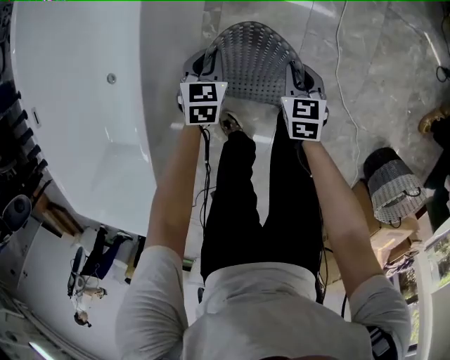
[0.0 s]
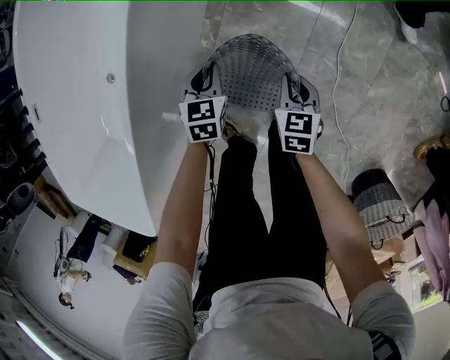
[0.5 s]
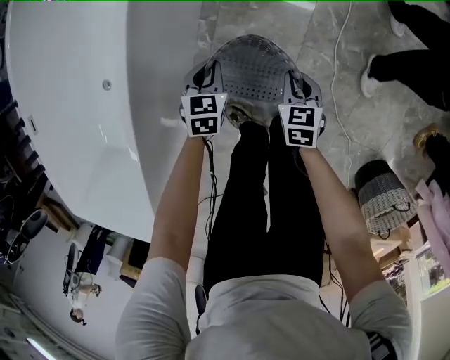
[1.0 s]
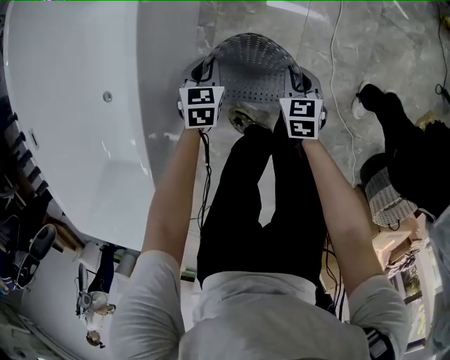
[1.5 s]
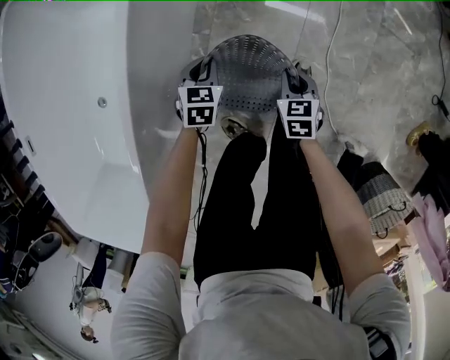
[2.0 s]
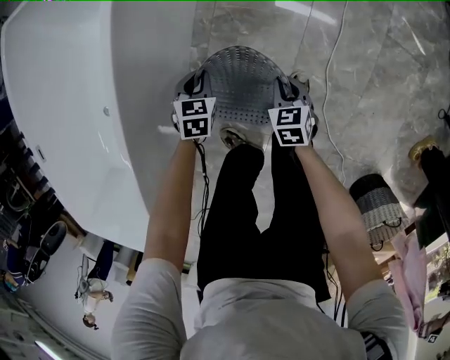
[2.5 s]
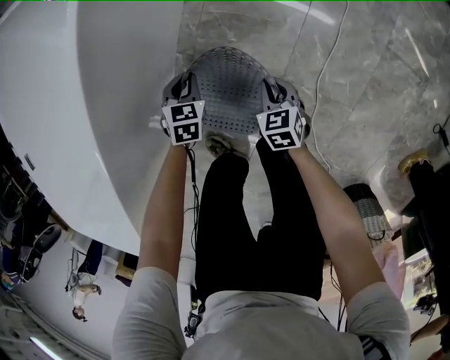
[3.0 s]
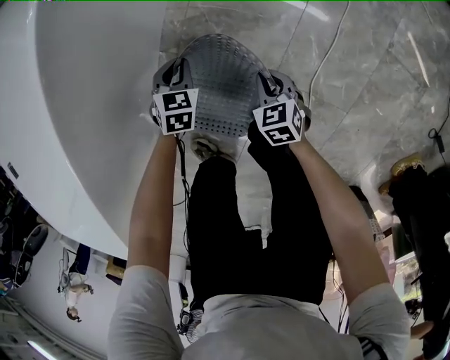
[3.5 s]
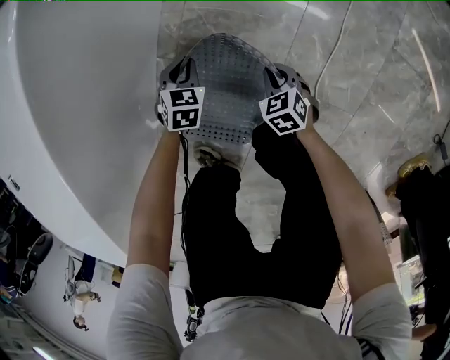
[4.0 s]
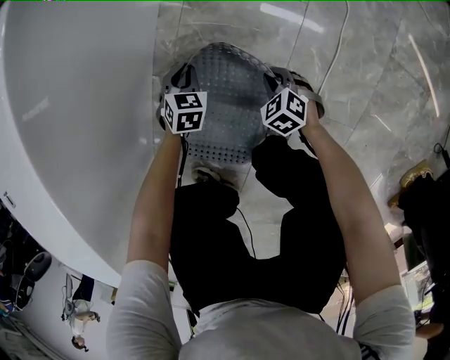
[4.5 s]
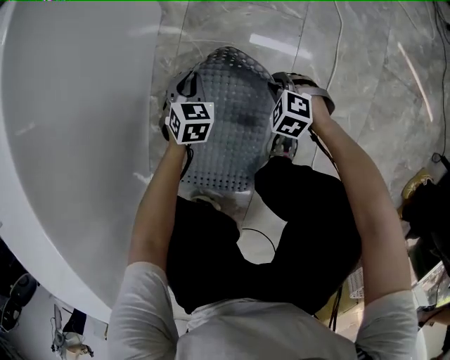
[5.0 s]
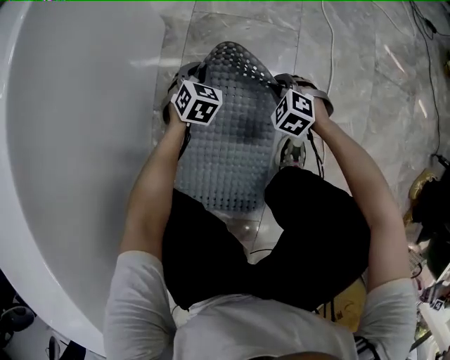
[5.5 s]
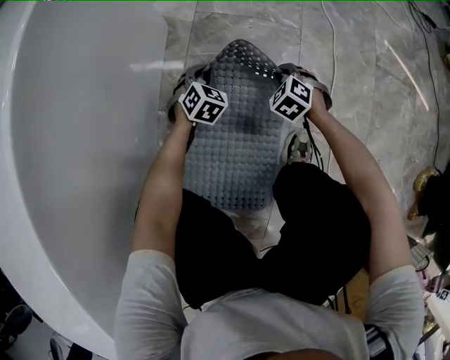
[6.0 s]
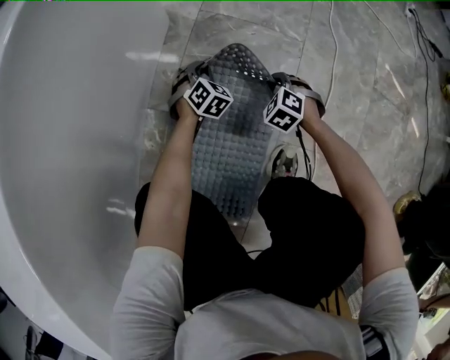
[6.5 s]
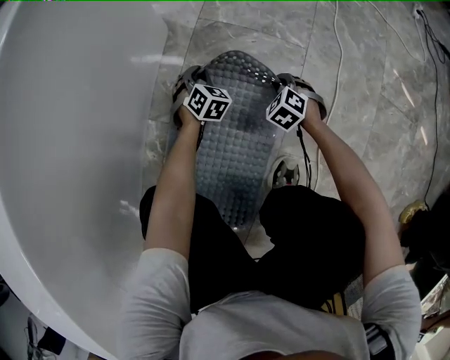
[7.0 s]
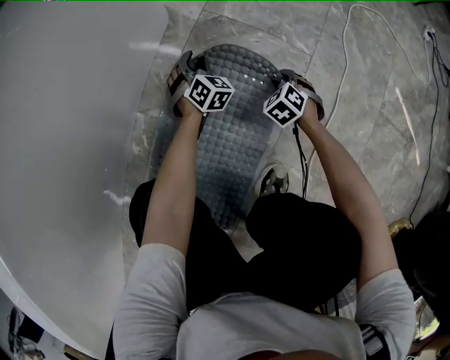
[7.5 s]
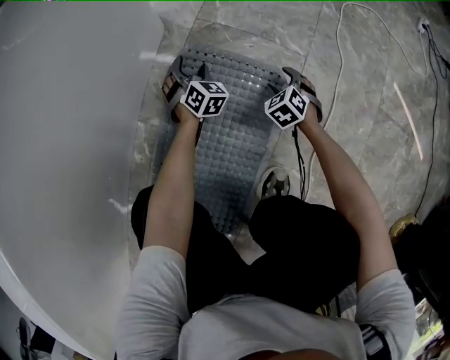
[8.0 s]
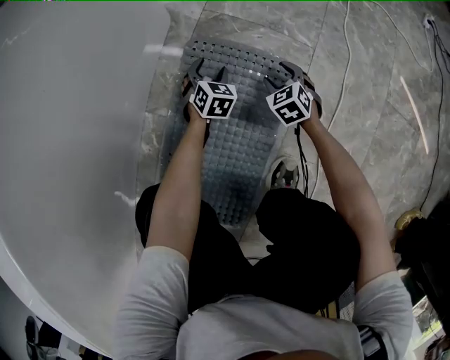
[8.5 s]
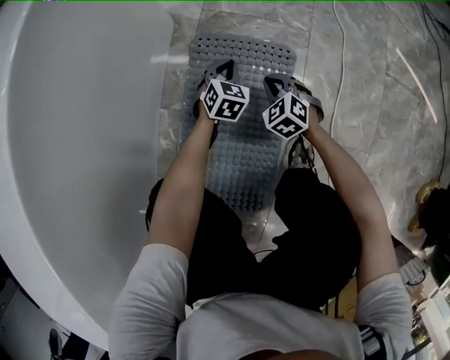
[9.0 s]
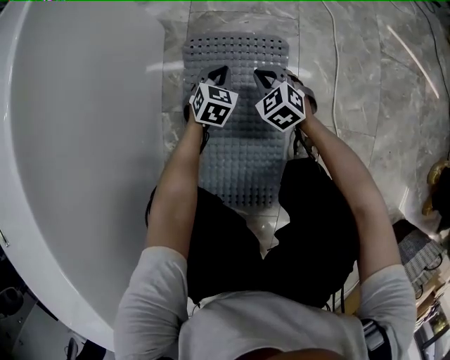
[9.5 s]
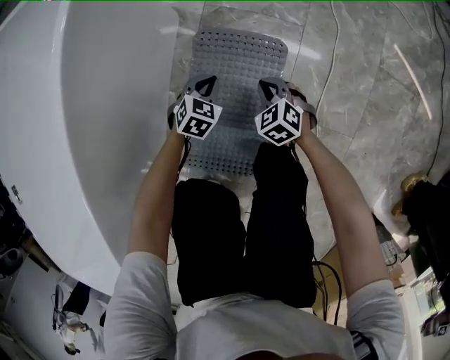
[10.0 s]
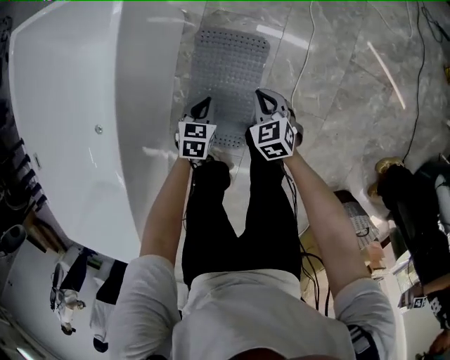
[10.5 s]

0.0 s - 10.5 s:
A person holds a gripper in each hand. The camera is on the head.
0.0 s - 2.0 s: The grippers both shift forward and downward by approximately 10 cm.
2.0 s - 4.0 s: Both grippers move downward, forward and to the right, some 25 cm. The right gripper changes its angle by approximately 30 degrees.
4.0 s - 6.5 s: Both grippers travel together downward, some 15 cm. The right gripper swivels some 40 degrees, while the left gripper changes its angle by about 30 degrees.
6.5 s - 8.5 s: The right gripper moves forward, some 5 cm, turns by some 20 degrees, and opens. The left gripper opens its fingers.
8.5 s - 10.5 s: The left gripper travels upward and backward by some 40 cm, swivels approximately 20 degrees, and closes; the right gripper travels upward by approximately 40 cm, turns by about 20 degrees, and closes.

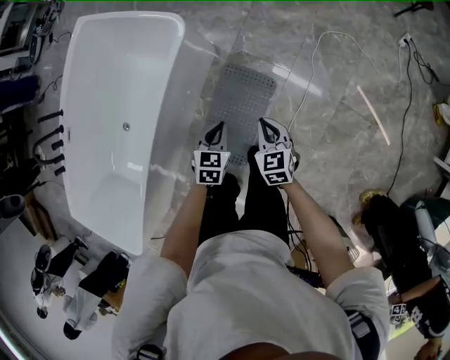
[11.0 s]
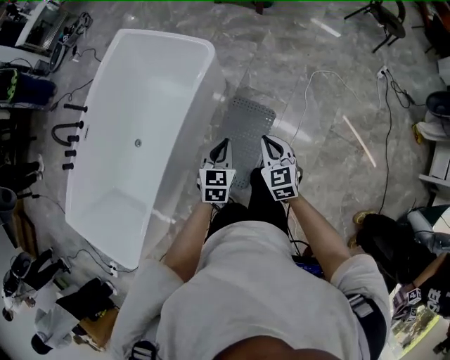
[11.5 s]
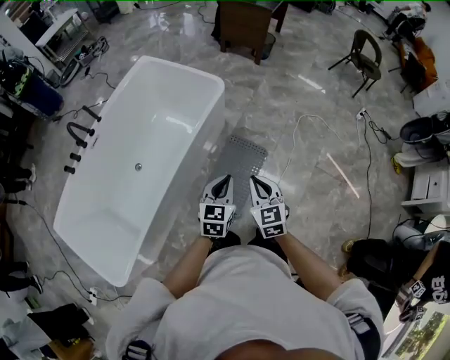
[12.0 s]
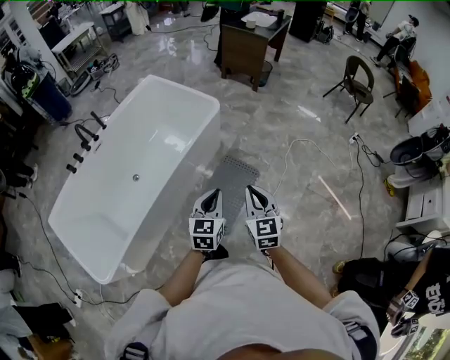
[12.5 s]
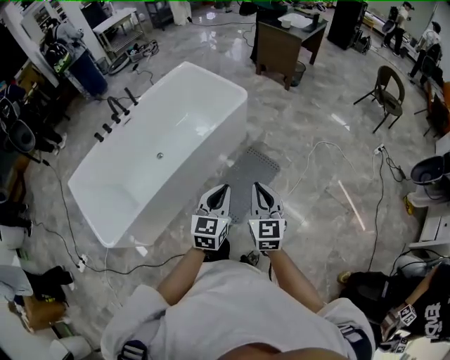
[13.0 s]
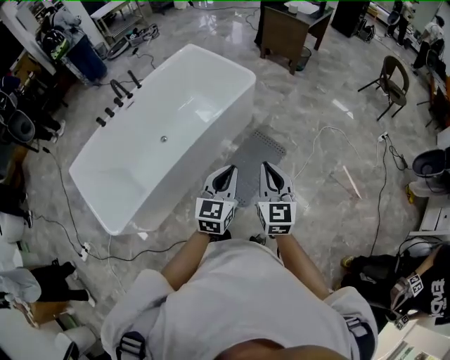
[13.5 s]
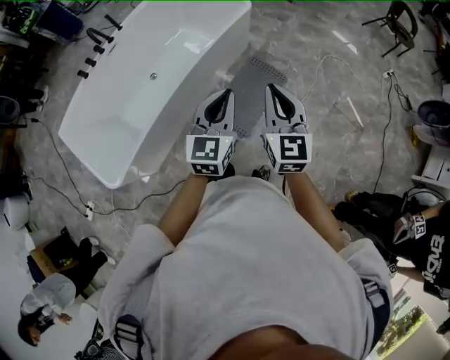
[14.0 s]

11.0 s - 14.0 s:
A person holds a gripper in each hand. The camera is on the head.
11.0 s - 12.5 s: The grippers both shift upward and backward by approximately 40 cm. The left gripper swivels some 30 degrees. Meanwhile the right gripper turns by some 30 degrees.
12.5 s - 14.0 s: The left gripper travels upward, backward and to the left by some 15 cm; the right gripper moves upward, to the left and backward, roughly 10 cm.

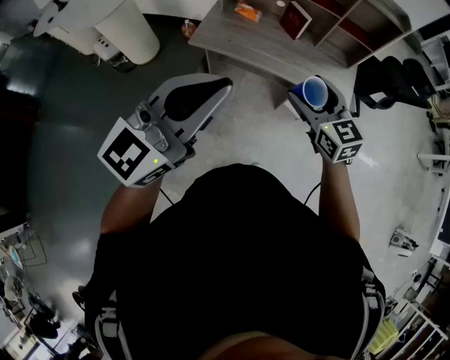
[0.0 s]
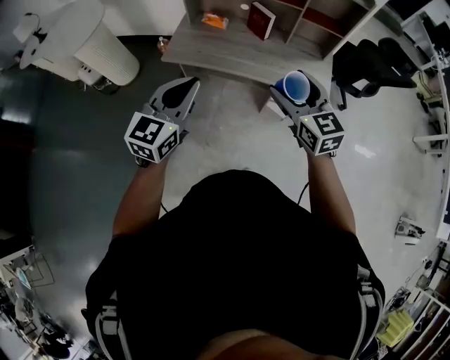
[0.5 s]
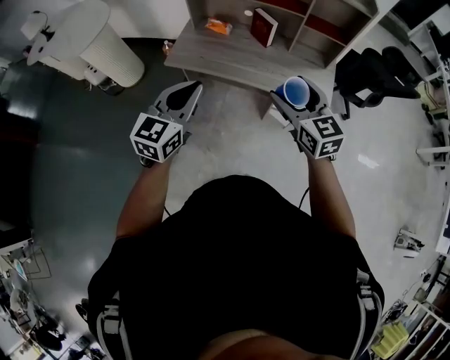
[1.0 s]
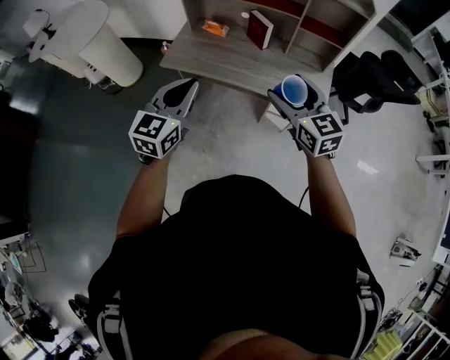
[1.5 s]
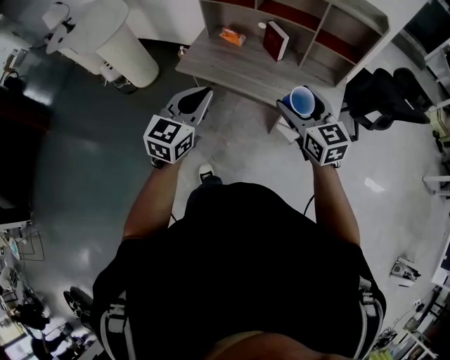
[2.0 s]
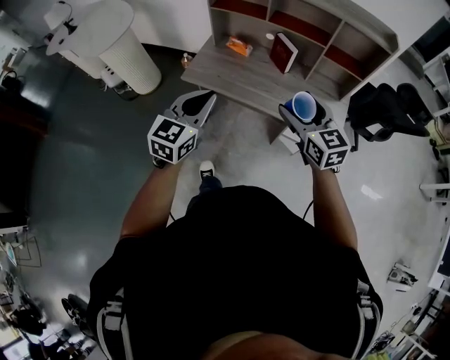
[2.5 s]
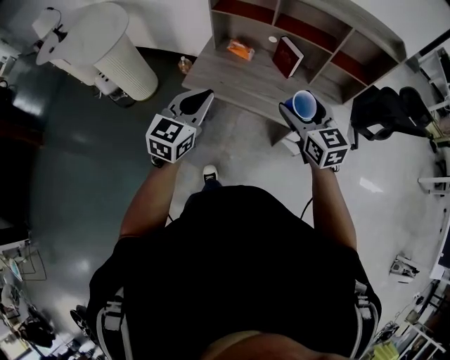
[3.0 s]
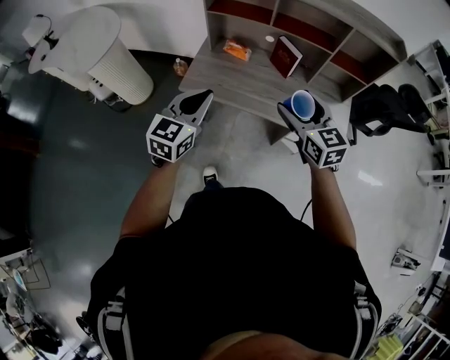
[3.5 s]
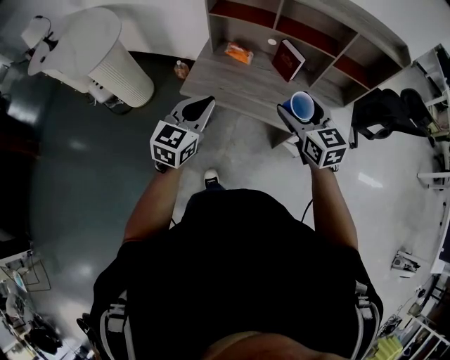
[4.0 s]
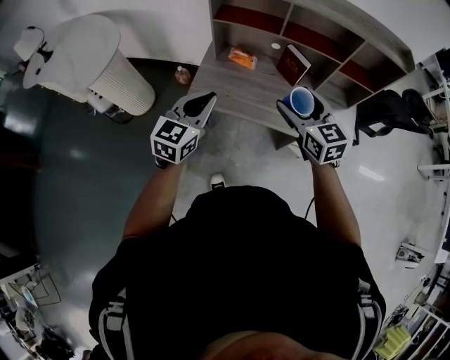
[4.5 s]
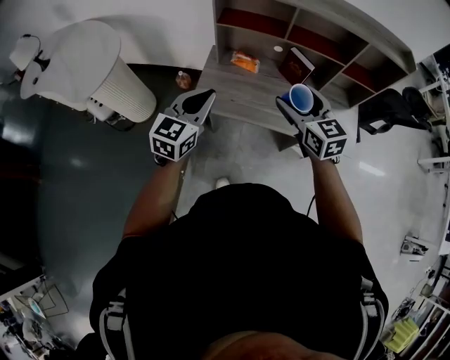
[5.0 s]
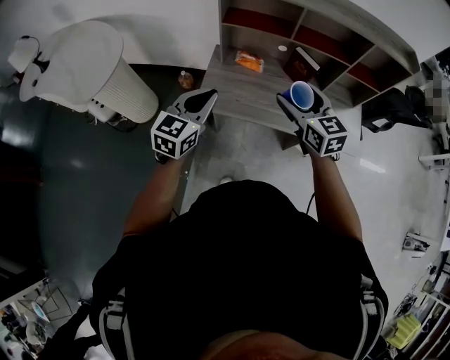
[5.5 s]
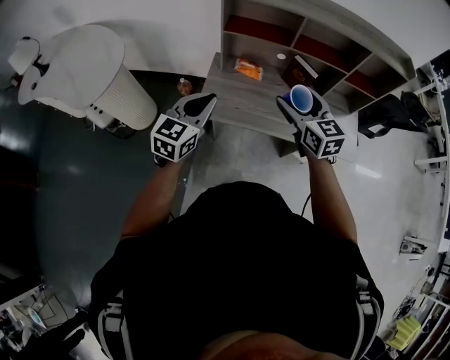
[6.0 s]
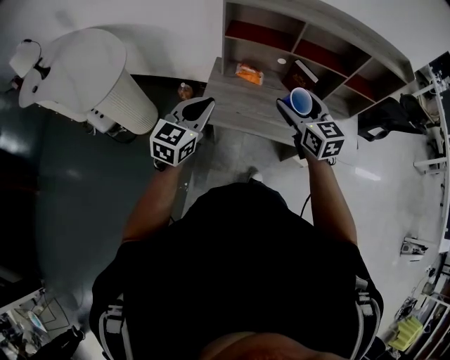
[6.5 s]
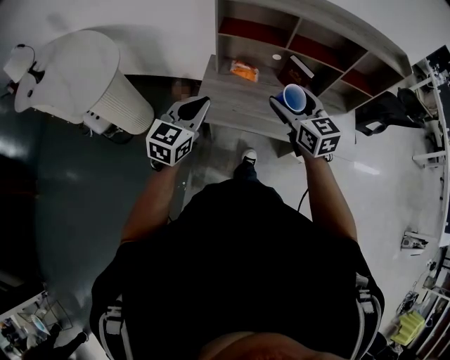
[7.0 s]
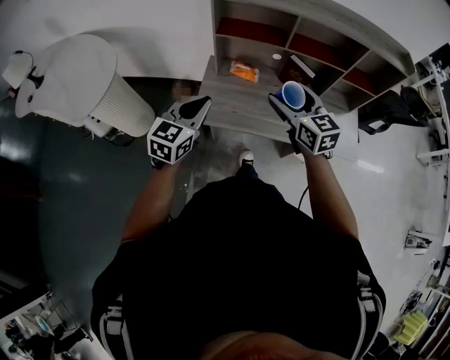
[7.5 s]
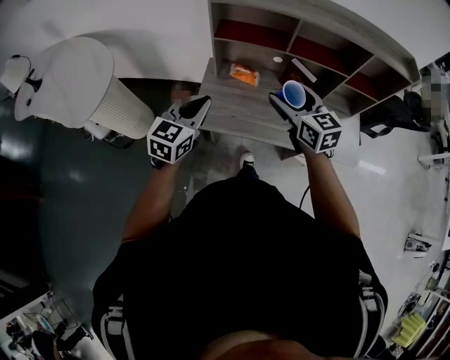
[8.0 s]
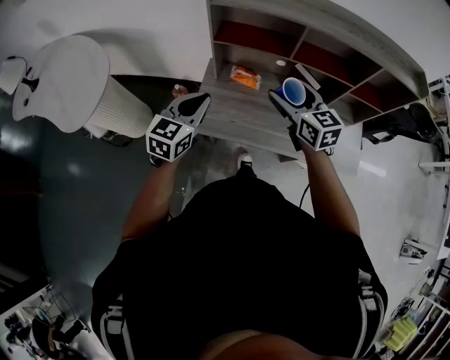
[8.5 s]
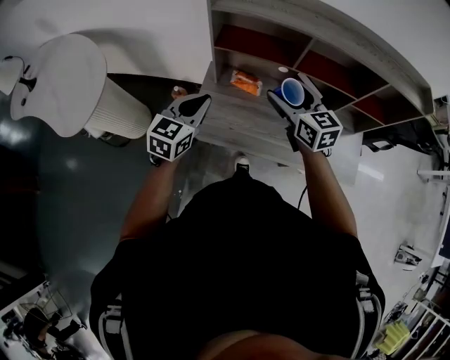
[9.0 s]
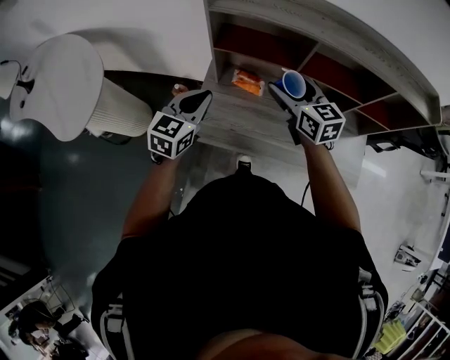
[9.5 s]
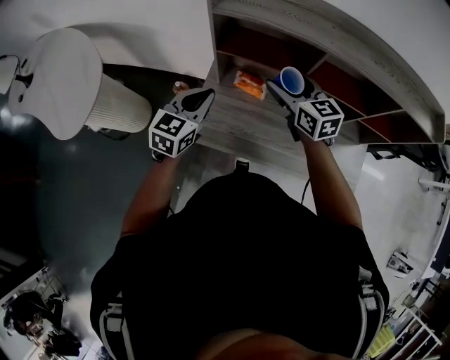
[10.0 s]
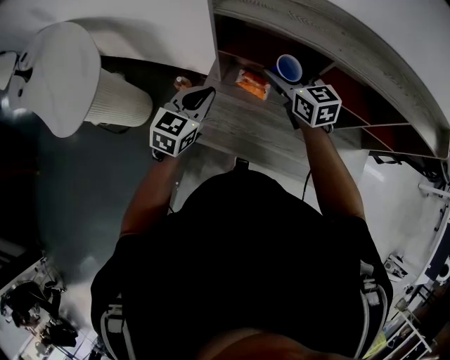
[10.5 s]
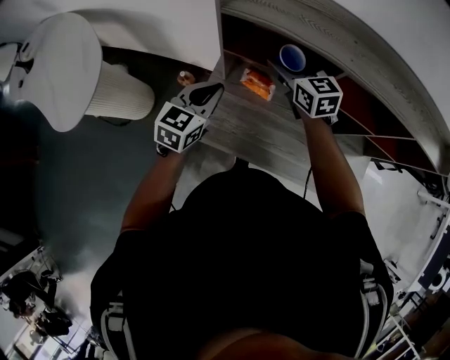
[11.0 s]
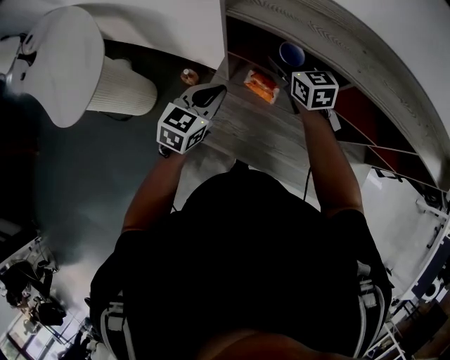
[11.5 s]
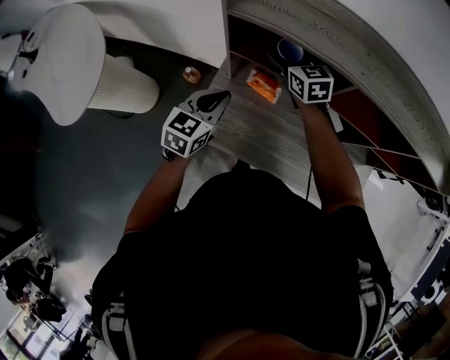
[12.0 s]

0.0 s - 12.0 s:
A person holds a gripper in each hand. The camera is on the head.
0.0 s - 2.0 s: The right gripper travels to the right by roughly 15 cm. The left gripper moves downward, to the right and forward, some 20 cm, and rotates approximately 30 degrees.
2.0 s - 4.0 s: Both grippers move forward and to the left, about 20 cm.
4.0 s - 6.0 s: The grippers both shift to the left and forward by roughly 15 cm.
6.0 s - 8.0 s: Both grippers move forward, approximately 5 cm.
8.0 s - 10.0 s: The grippers both shift forward by some 20 cm.
10.0 s - 12.0 s: The right gripper heads forward and downward, covering some 15 cm, while the left gripper ends up some 5 cm from where it was.

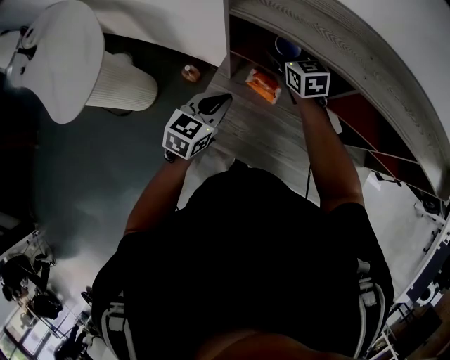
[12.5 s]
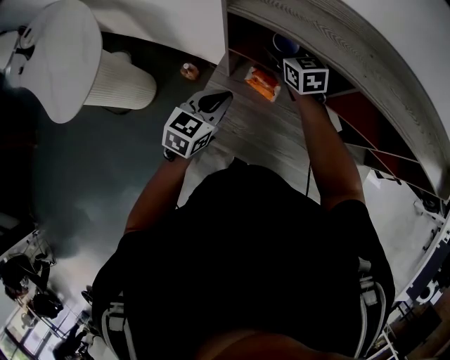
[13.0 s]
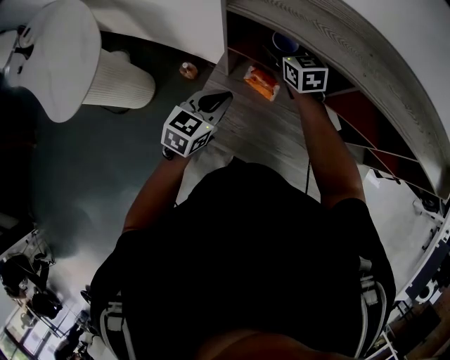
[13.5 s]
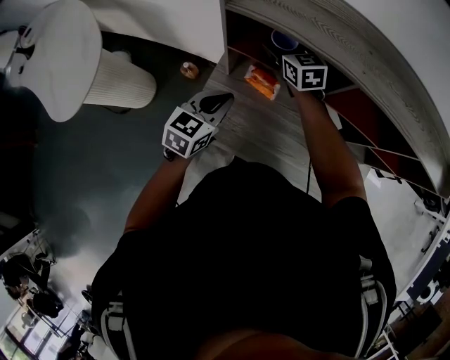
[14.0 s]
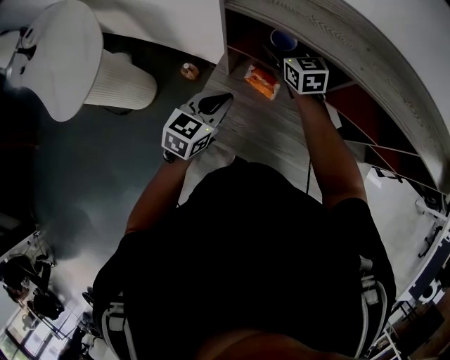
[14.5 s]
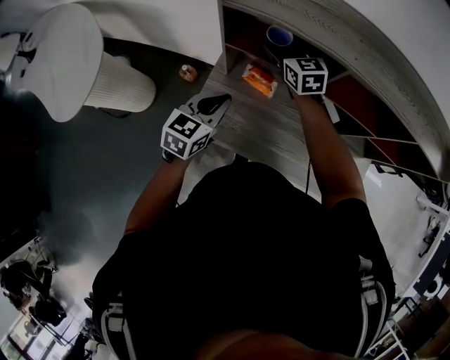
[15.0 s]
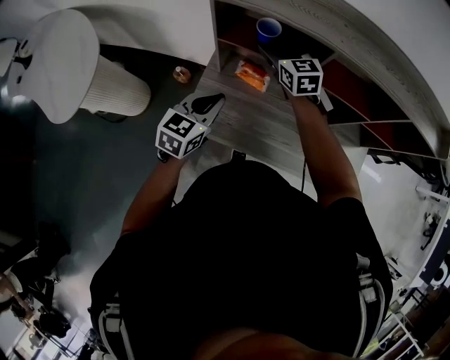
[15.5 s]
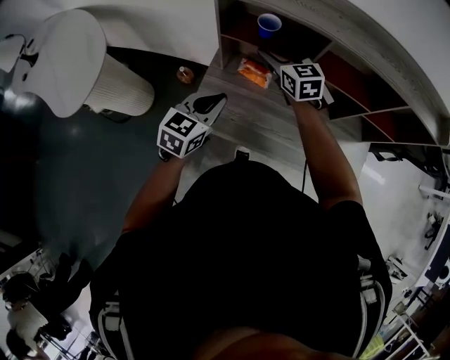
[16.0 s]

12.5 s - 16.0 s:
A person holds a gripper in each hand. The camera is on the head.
12.5 s - 14.5 s: The grippers move only a little.
14.5 s - 16.0 s: Both grippers travel together backward, some 10 cm.
